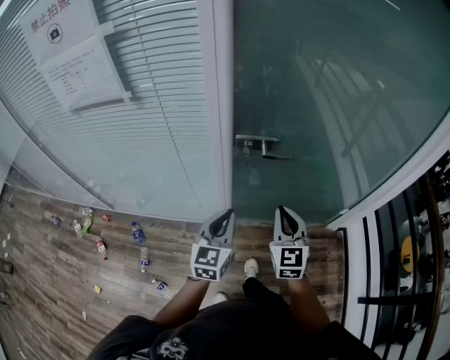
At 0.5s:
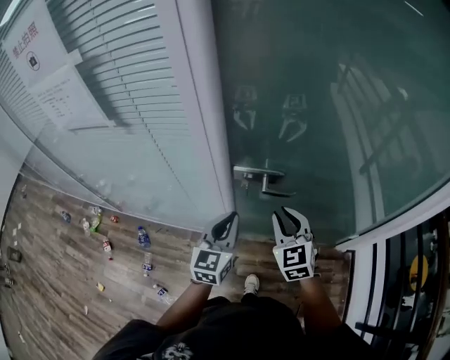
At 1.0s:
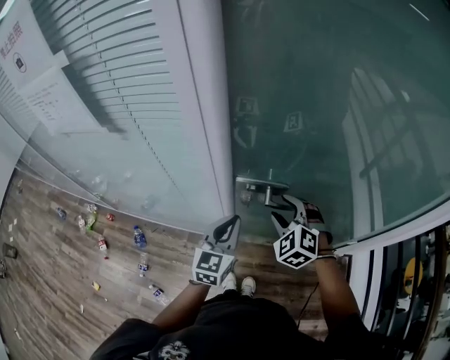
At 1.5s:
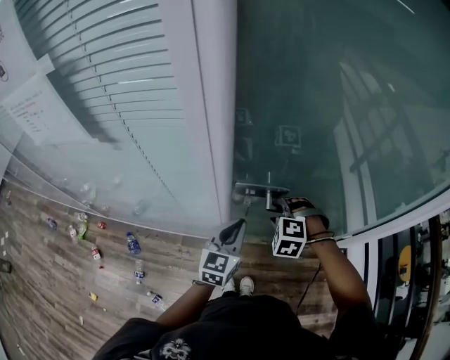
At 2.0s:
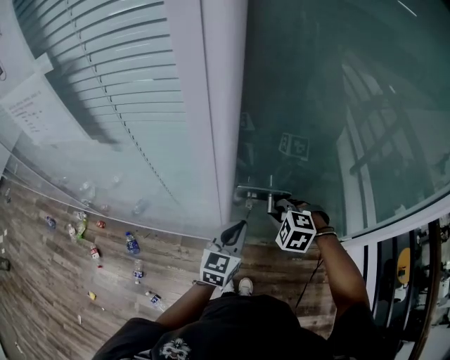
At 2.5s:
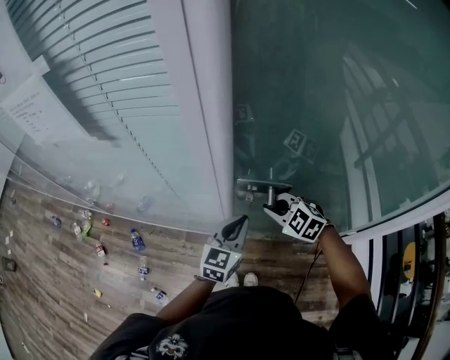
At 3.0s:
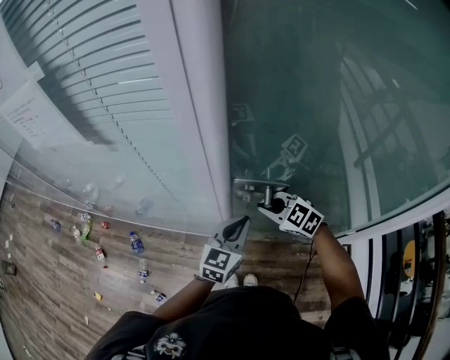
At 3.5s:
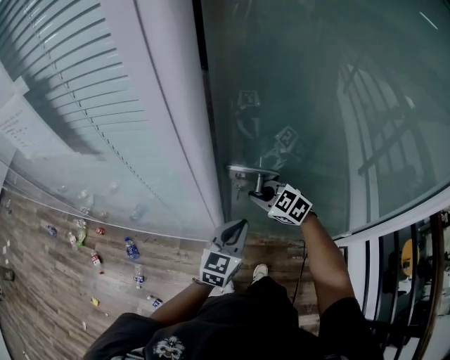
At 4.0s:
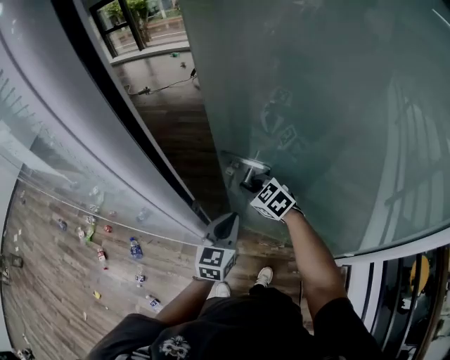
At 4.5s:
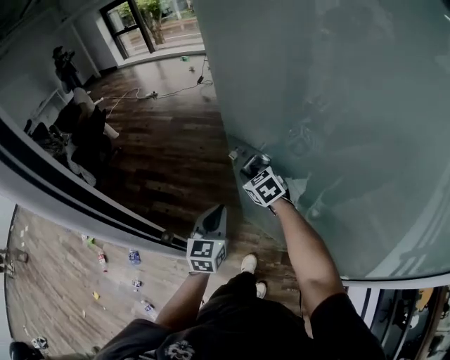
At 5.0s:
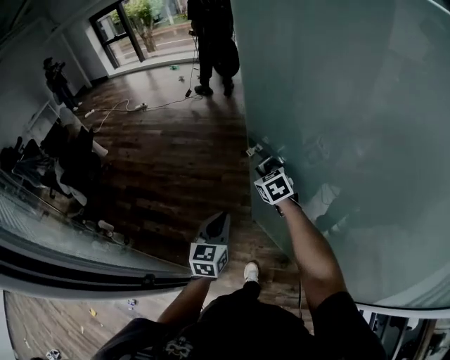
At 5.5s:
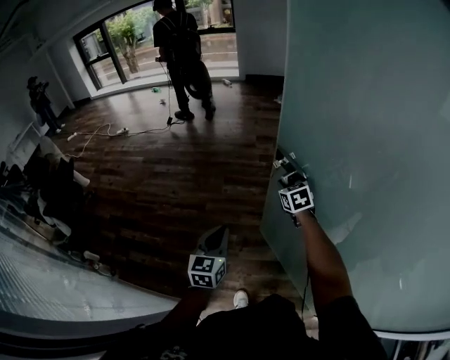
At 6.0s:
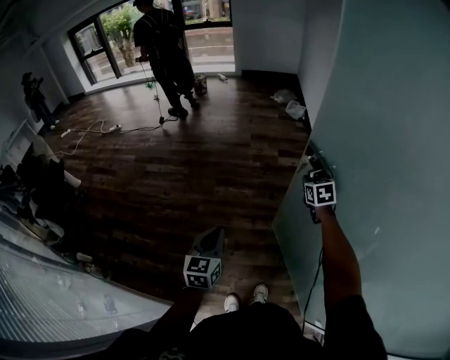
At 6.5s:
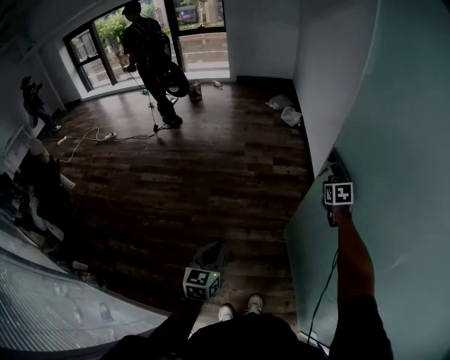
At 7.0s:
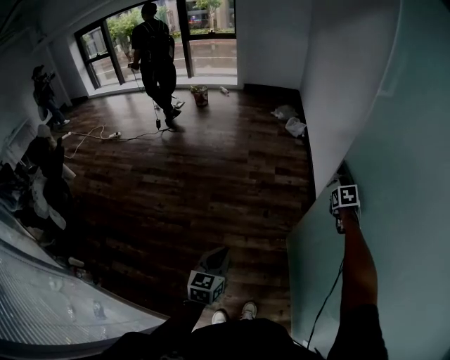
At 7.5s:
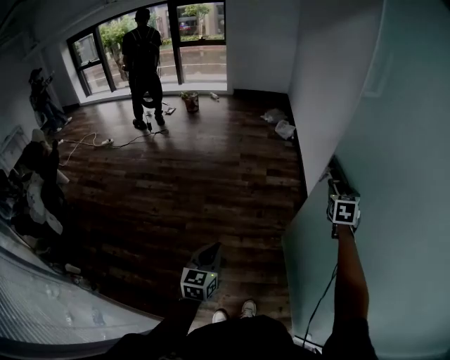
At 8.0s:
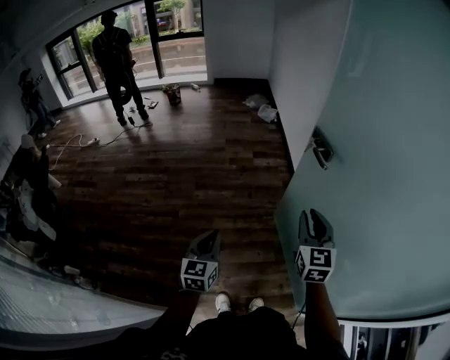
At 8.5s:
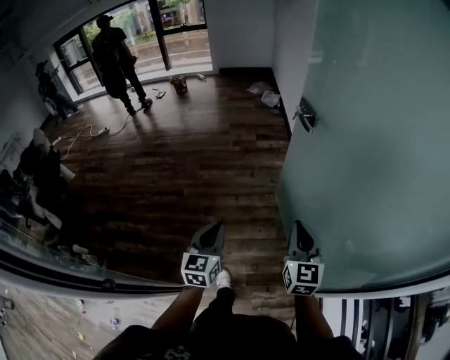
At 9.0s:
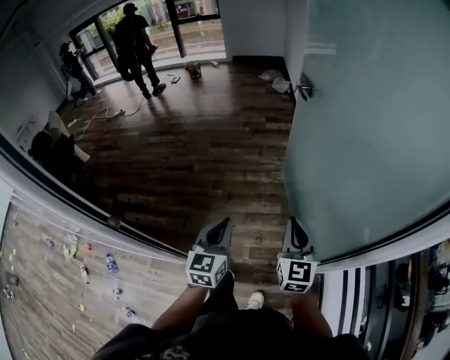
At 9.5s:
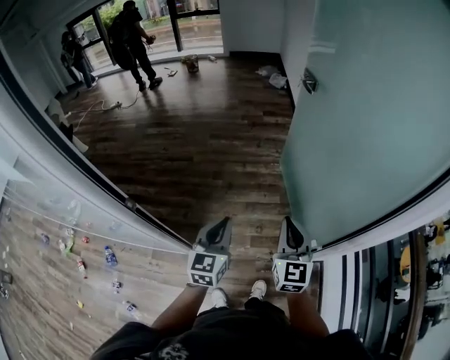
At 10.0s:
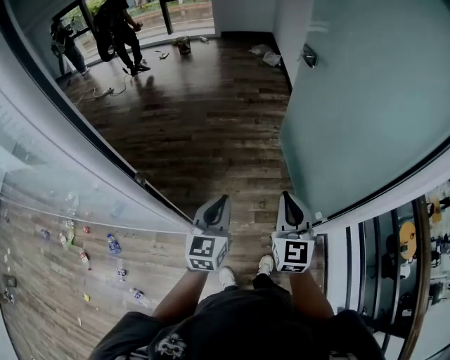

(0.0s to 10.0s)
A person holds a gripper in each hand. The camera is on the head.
0.0s - 2.0s: The right gripper is displaced forward and downward by roughly 25 cm, tilts its fingers roughly 50 degrees downward, and opens and closes again; the left gripper goes roughly 20 cm forward.
2.0s - 4.0s: The left gripper travels forward and to the right by roughly 15 cm. The right gripper travels forward by approximately 20 cm, and swivels some 40 degrees.
4.0s - 6.0s: The two grippers travel together, forward and to the right, about 60 cm. The right gripper changes its angle by roughly 50 degrees.
6.0s - 8.0s: The left gripper heads backward and to the right, covering some 10 cm; the right gripper travels backward and upward by roughly 35 cm, changes its angle by some 30 degrees, and opens up.
8.0s - 10.0s: The two grippers travel together, backward, some 50 cm. The right gripper closes up.

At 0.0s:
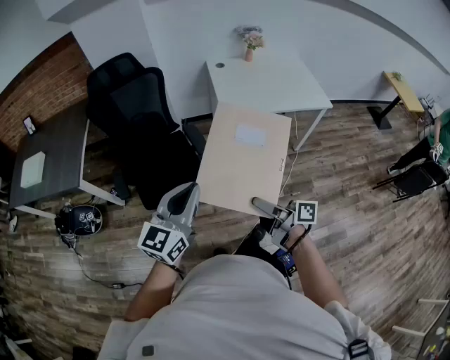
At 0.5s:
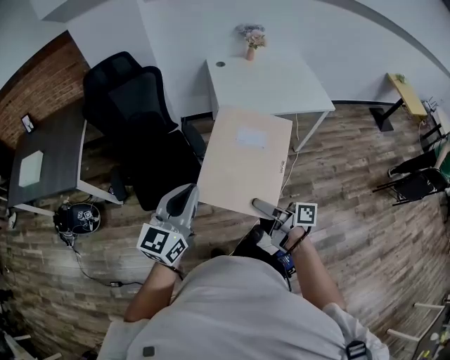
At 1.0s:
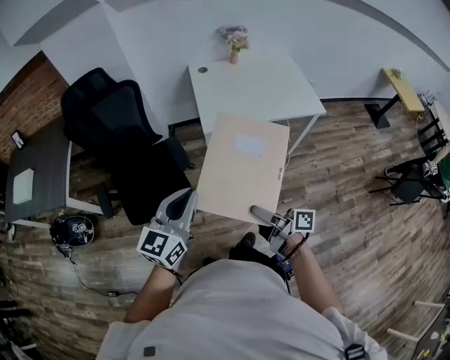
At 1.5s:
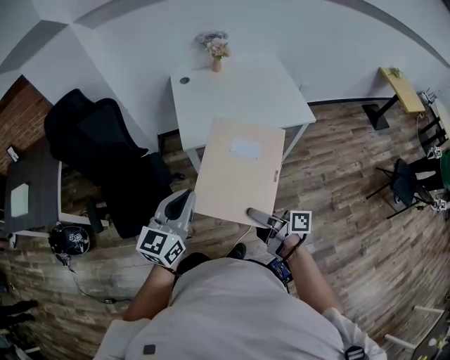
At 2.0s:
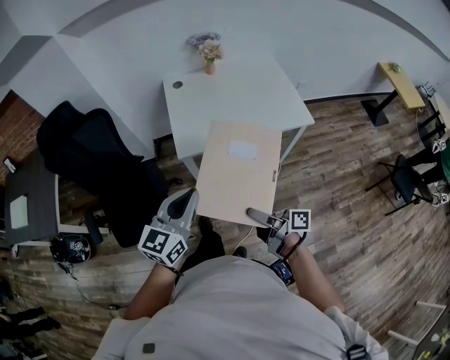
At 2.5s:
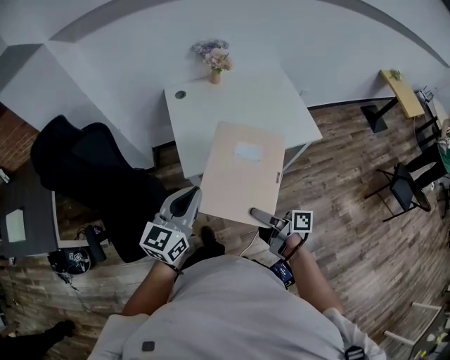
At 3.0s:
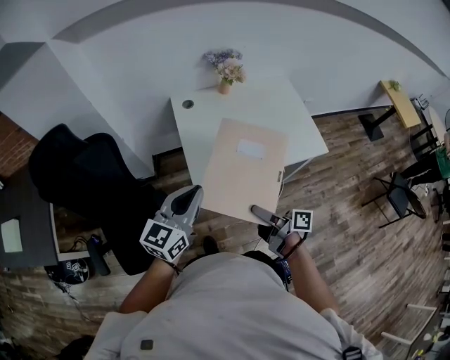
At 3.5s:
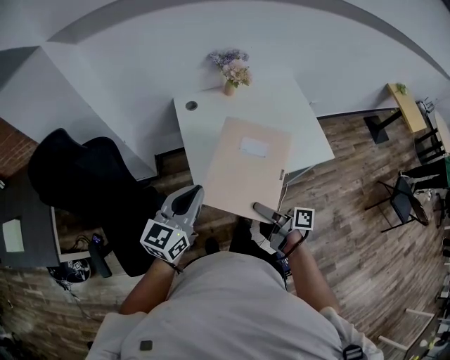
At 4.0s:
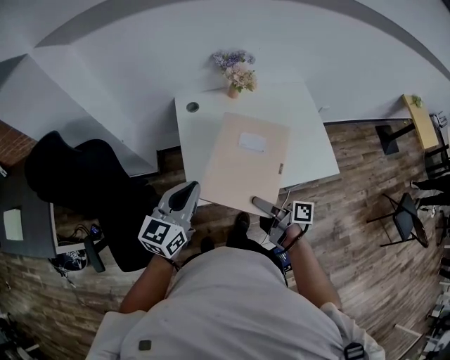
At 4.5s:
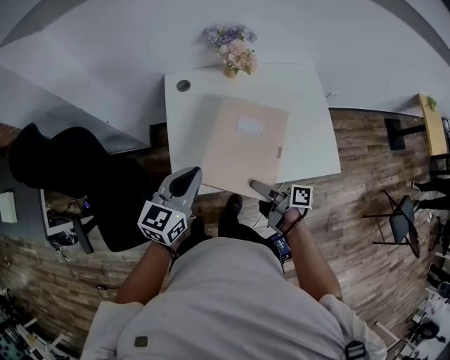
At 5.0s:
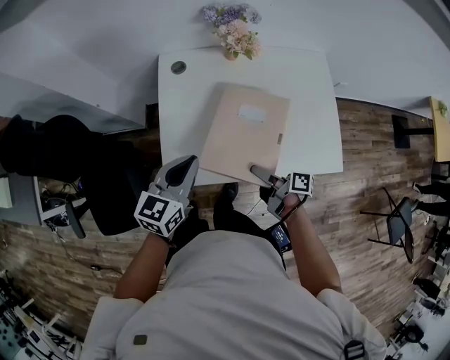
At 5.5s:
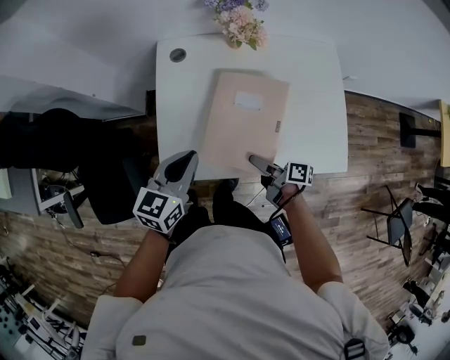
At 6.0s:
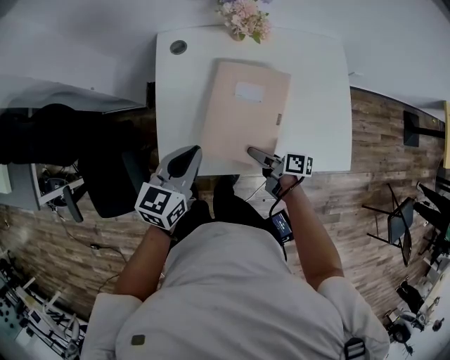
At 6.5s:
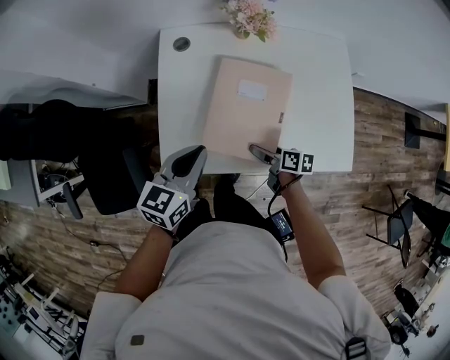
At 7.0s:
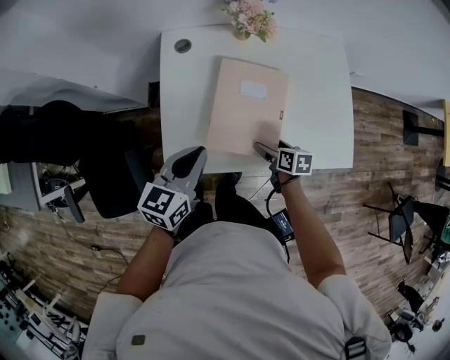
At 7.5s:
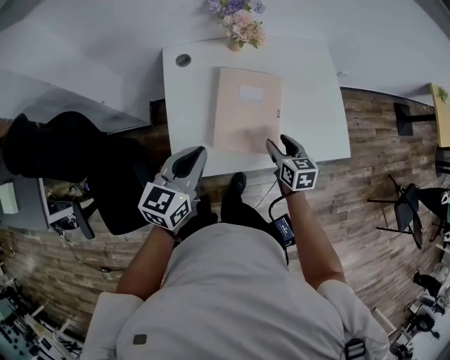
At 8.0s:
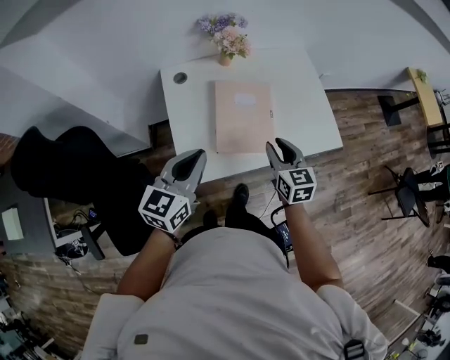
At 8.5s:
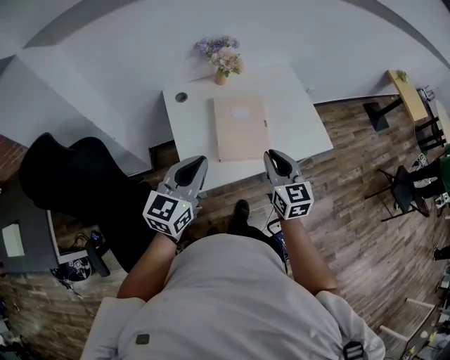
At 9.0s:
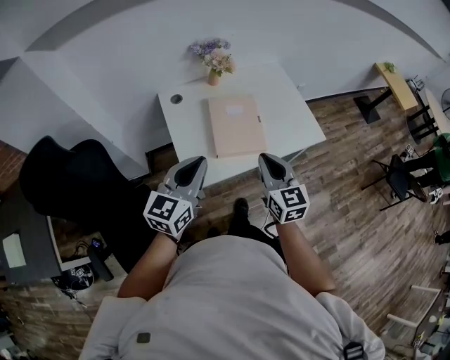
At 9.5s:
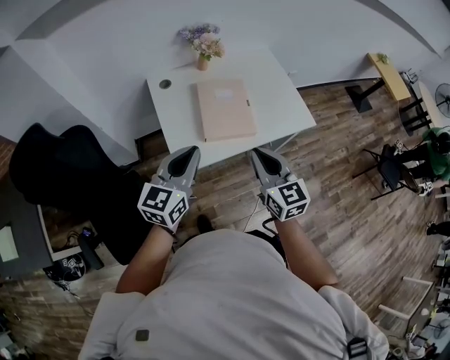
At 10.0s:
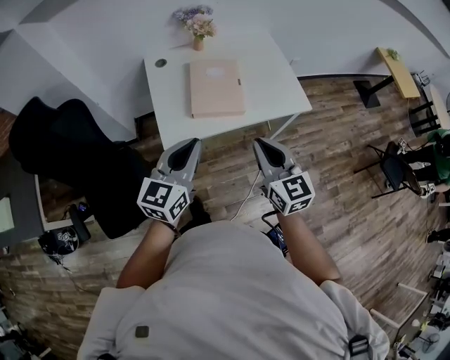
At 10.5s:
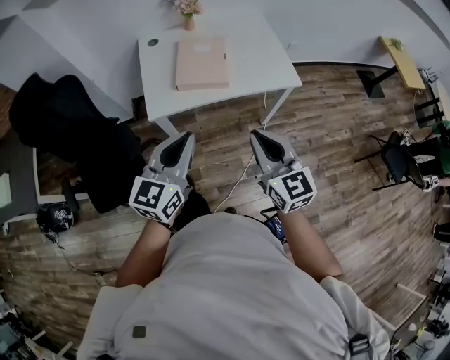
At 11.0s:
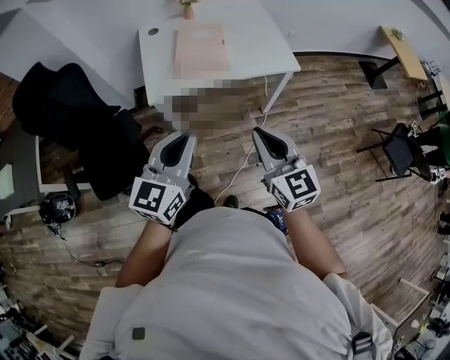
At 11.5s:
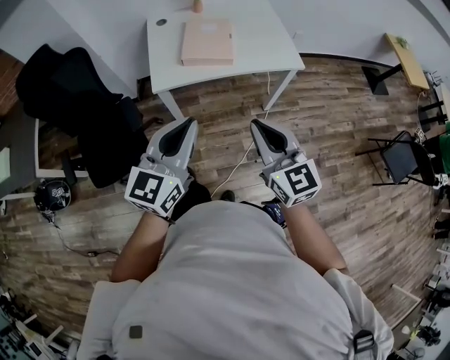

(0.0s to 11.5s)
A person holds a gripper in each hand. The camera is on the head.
0.0s - 2.0s: The grippers both shift to the right and forward by about 35 cm.
2.0s - 4.0s: Both grippers move forward, about 30 cm.
4.0s - 6.0s: The grippers both shift downward, to the right and forward by some 25 cm. The right gripper changes its angle by some 20 degrees.
6.0s - 7.5s: Both grippers move upward, some 5 cm. The right gripper turns by approximately 60 degrees.
7.5s - 9.5s: The right gripper travels upward and backward by approximately 35 cm, changes its angle by approximately 30 degrees, and closes. The left gripper heads backward and upward, covering some 20 cm.
9.5s - 11.5s: The two grippers go about 30 cm backward and to the right.

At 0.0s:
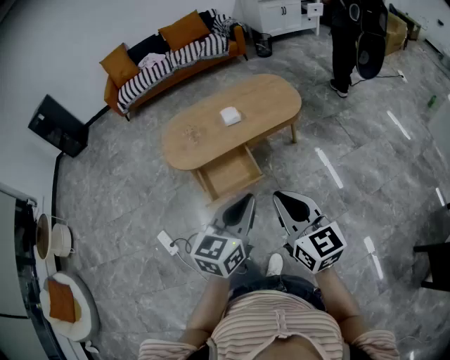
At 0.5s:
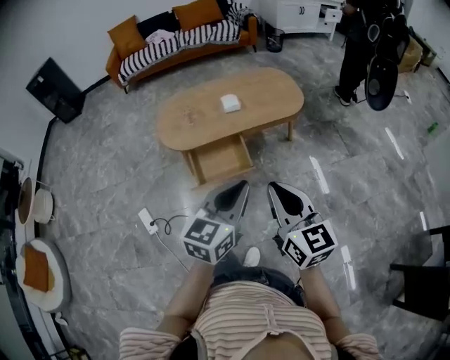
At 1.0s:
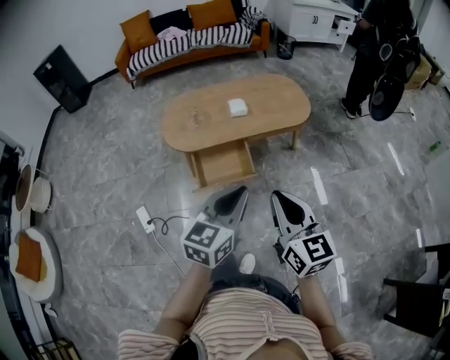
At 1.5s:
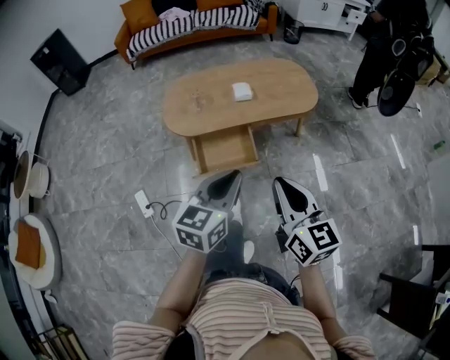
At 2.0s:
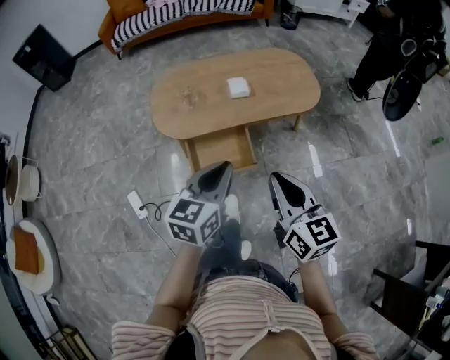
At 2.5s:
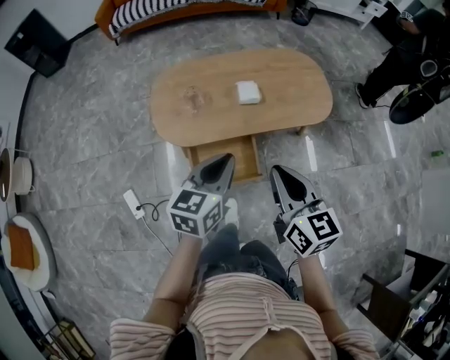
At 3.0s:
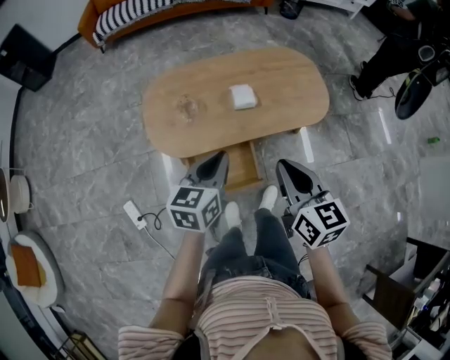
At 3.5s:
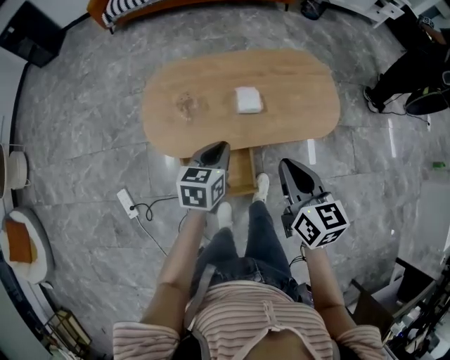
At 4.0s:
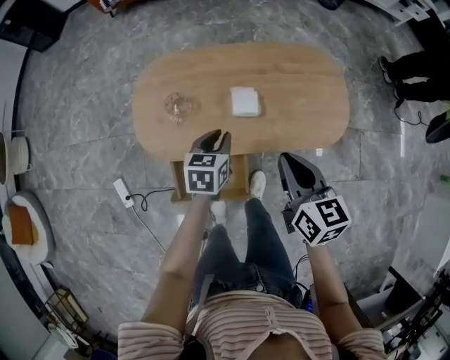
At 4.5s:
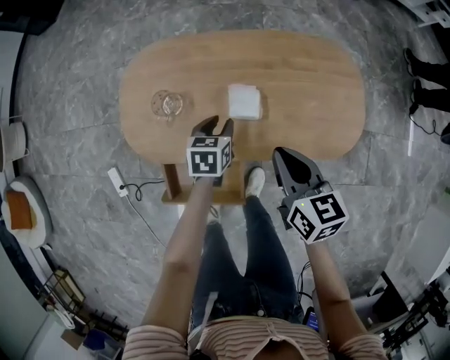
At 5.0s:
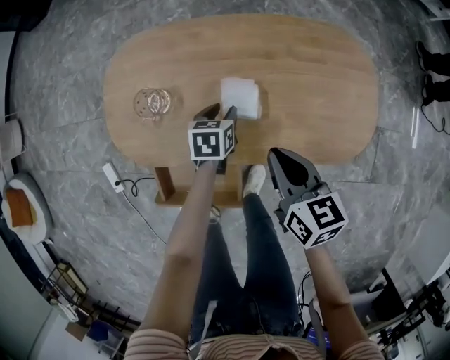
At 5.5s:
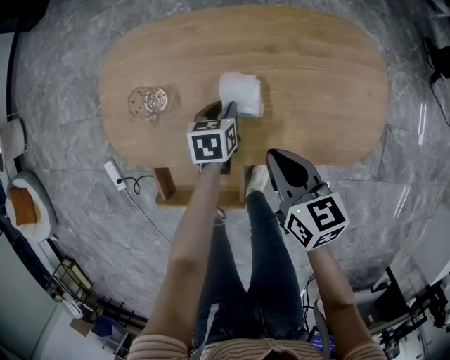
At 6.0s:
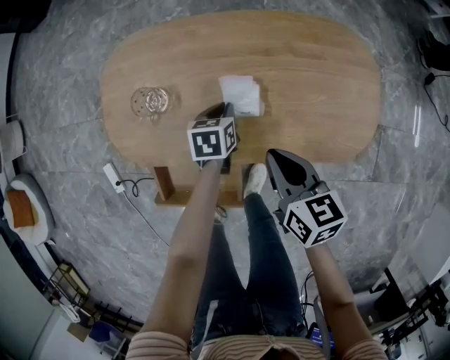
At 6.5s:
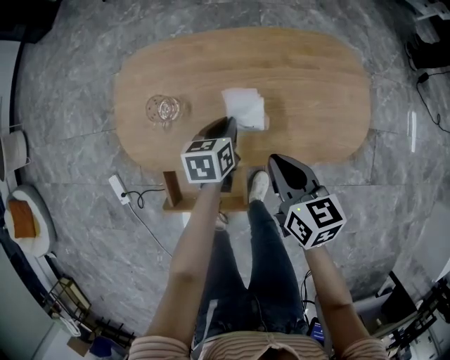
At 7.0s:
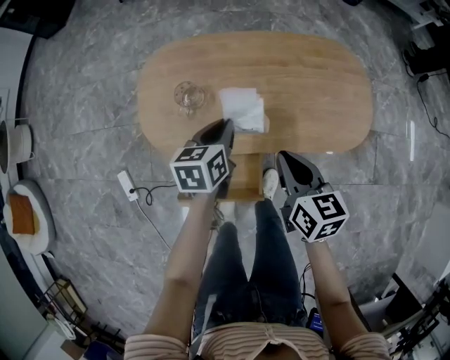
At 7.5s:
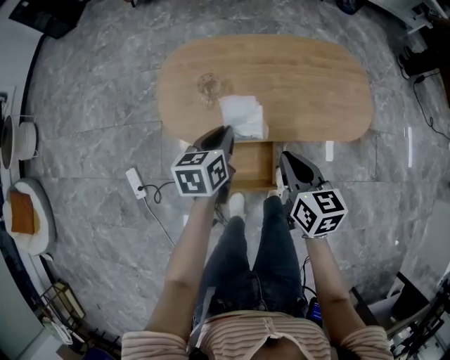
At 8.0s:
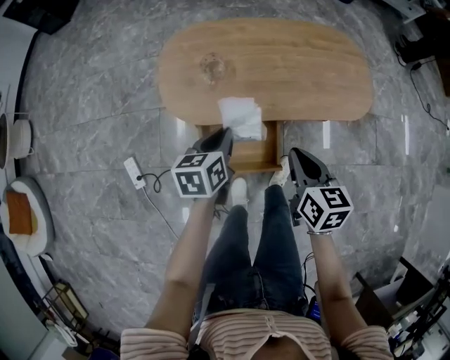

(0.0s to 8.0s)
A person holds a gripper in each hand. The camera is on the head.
0.0s - 2.0s: The left gripper is displaced forward and to the left by about 20 cm; the right gripper travels forward by roughly 15 cm.
2.0s - 4.0s: The left gripper goes some 40 cm forward and downward, and turns by roughly 30 degrees. Meanwhile the right gripper is displaced forward by about 35 cm.
4.0s - 6.0s: Both grippers move downward and forward, some 20 cm. The left gripper opens, then closes again.
6.0s - 8.0s: The left gripper is displaced backward, upward and to the left by approximately 35 cm. The right gripper shifts some 25 cm backward, to the left and upward.
